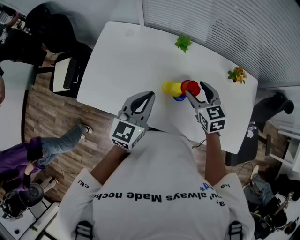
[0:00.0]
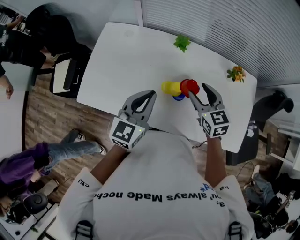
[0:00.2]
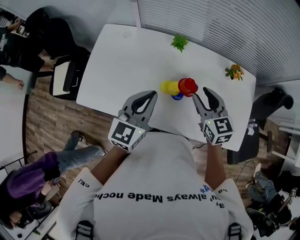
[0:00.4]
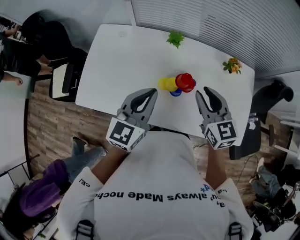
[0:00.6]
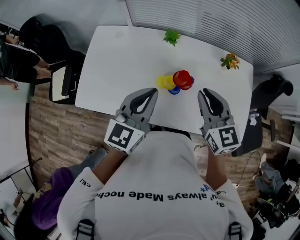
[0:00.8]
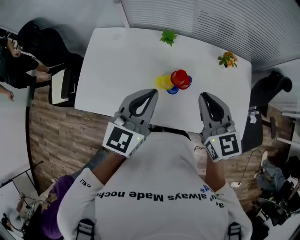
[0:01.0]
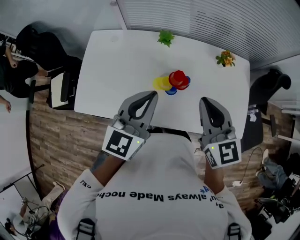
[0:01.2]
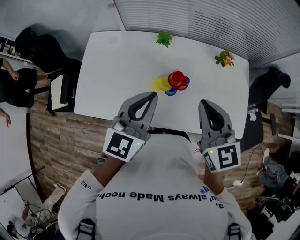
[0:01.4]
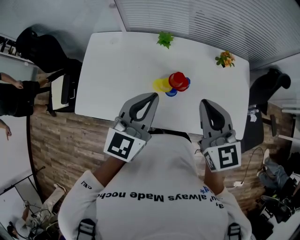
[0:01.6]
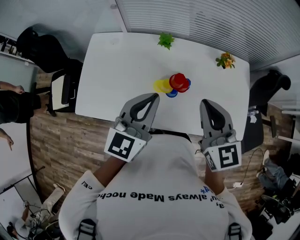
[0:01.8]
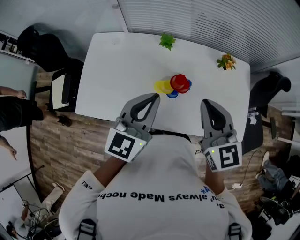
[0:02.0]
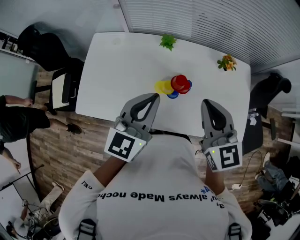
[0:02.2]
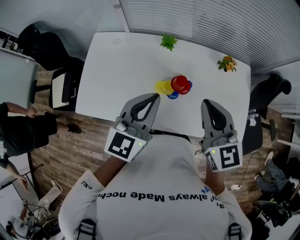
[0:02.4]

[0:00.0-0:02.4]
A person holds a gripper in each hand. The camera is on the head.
0:00.0 to 0:01.2: The right gripper moves upward and backward, approximately 20 cm, turns by some 20 degrees, and closes. The left gripper travels upward and to the right by roughly 10 cm.
0:01.2 to 0:02.4: The grippers stay close to where they were, moving slightly.

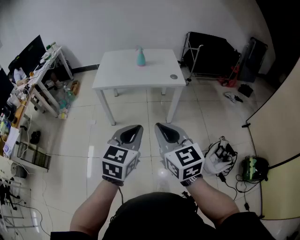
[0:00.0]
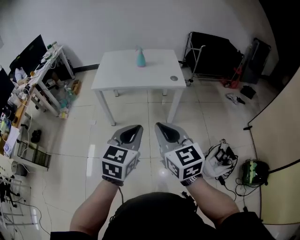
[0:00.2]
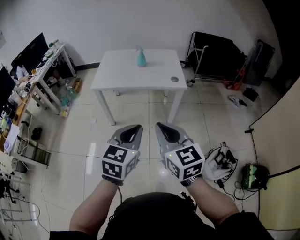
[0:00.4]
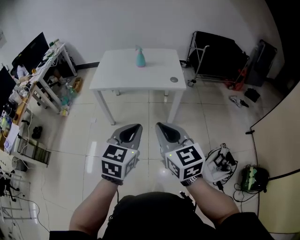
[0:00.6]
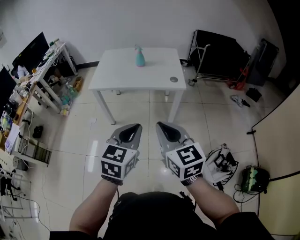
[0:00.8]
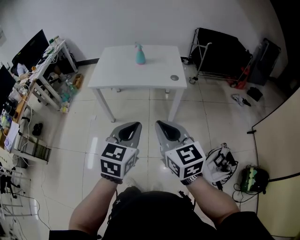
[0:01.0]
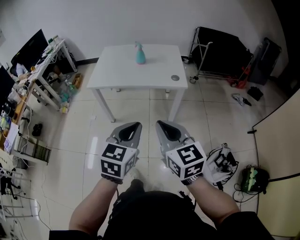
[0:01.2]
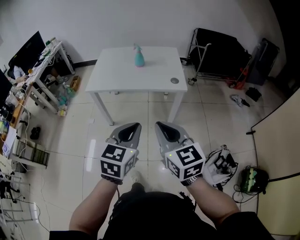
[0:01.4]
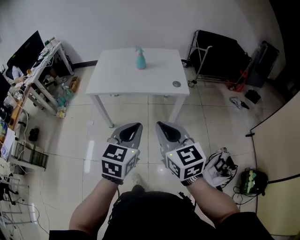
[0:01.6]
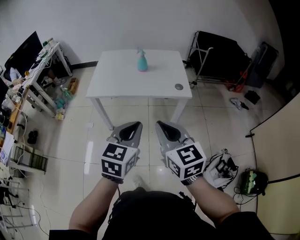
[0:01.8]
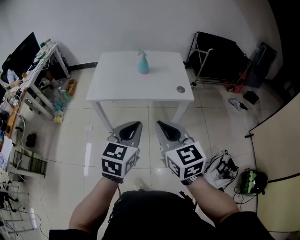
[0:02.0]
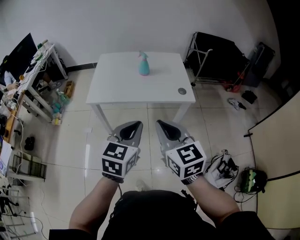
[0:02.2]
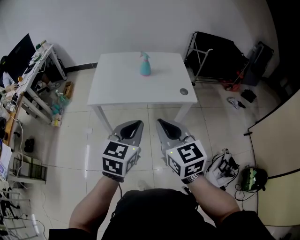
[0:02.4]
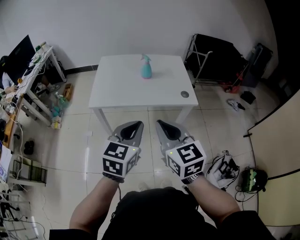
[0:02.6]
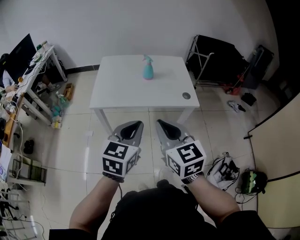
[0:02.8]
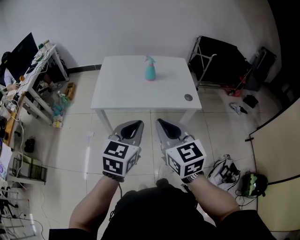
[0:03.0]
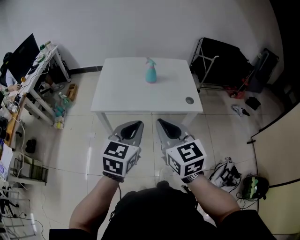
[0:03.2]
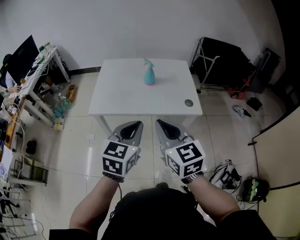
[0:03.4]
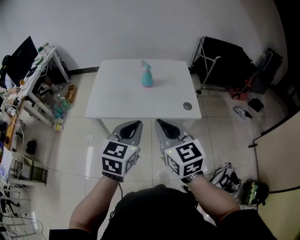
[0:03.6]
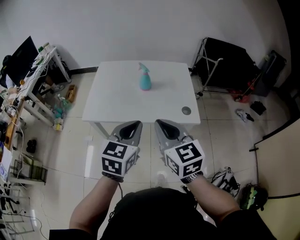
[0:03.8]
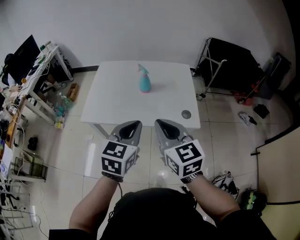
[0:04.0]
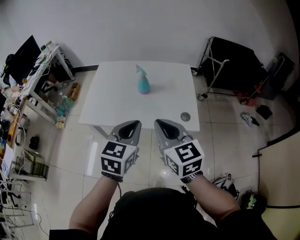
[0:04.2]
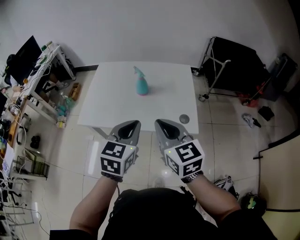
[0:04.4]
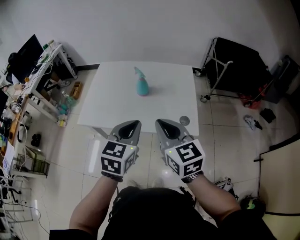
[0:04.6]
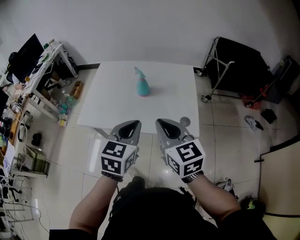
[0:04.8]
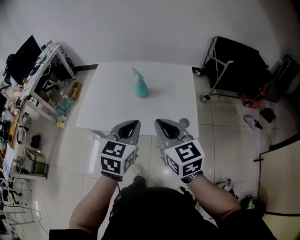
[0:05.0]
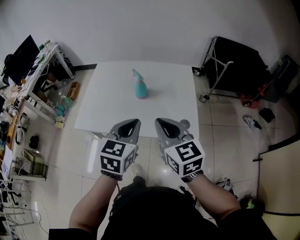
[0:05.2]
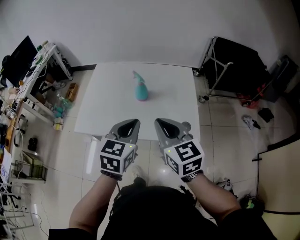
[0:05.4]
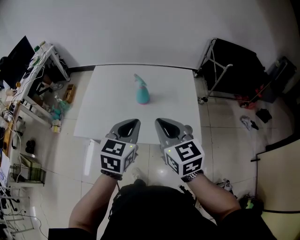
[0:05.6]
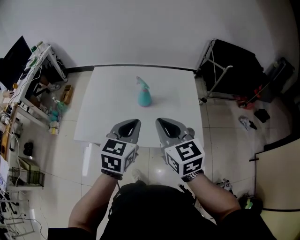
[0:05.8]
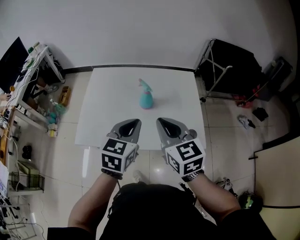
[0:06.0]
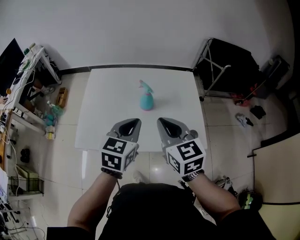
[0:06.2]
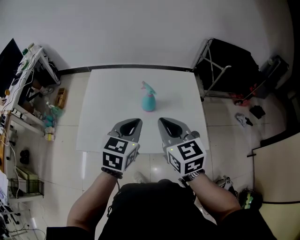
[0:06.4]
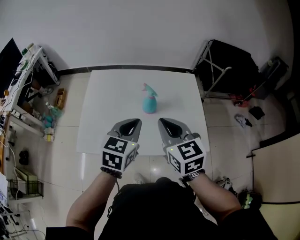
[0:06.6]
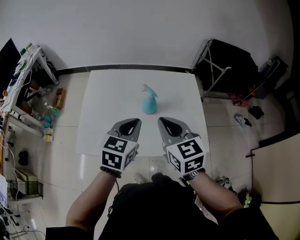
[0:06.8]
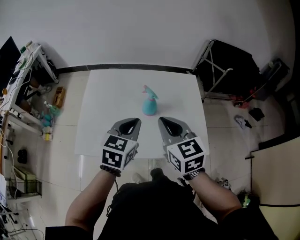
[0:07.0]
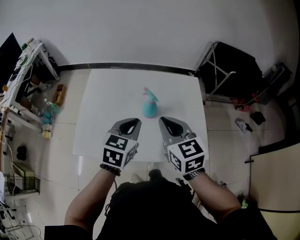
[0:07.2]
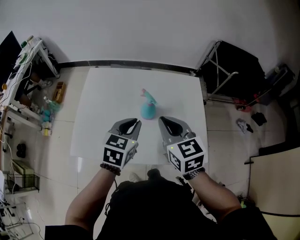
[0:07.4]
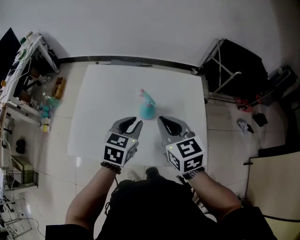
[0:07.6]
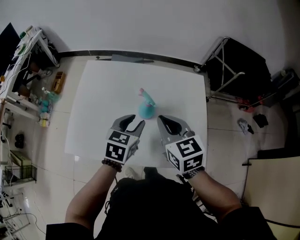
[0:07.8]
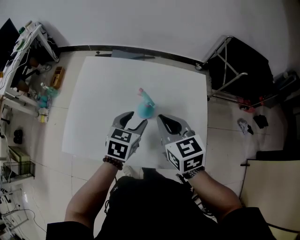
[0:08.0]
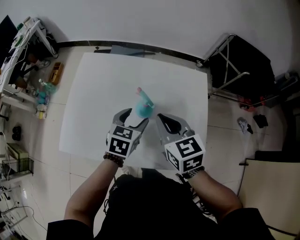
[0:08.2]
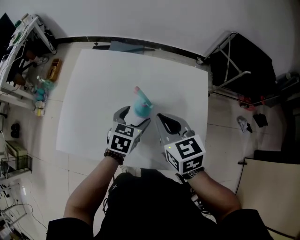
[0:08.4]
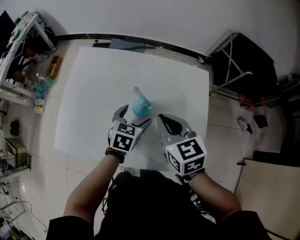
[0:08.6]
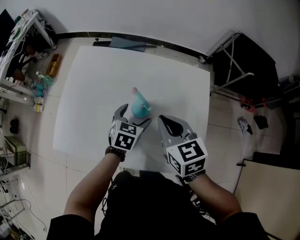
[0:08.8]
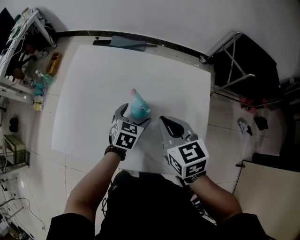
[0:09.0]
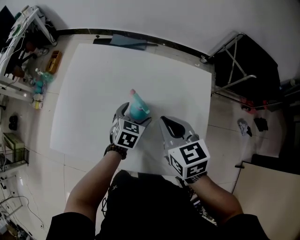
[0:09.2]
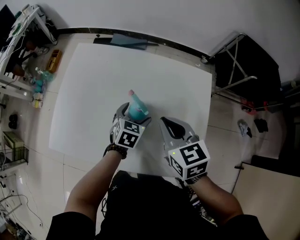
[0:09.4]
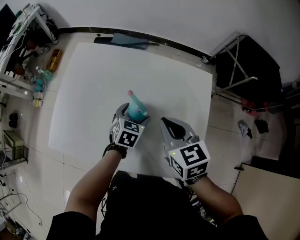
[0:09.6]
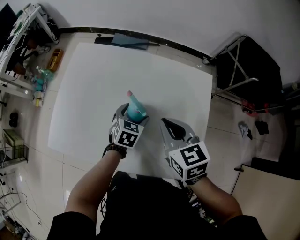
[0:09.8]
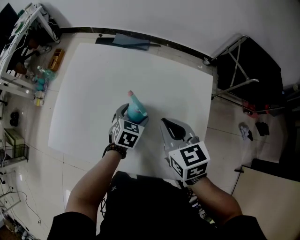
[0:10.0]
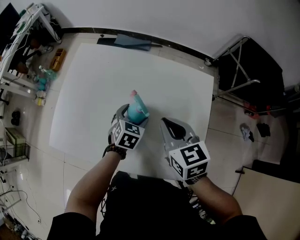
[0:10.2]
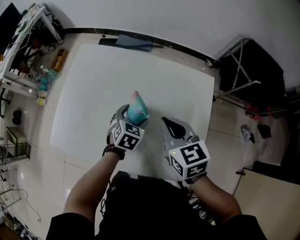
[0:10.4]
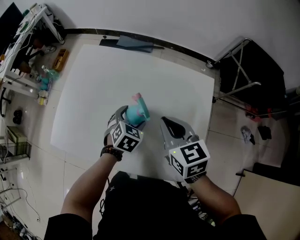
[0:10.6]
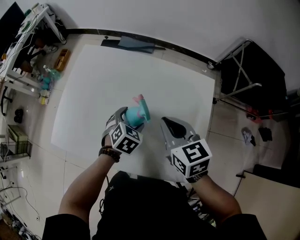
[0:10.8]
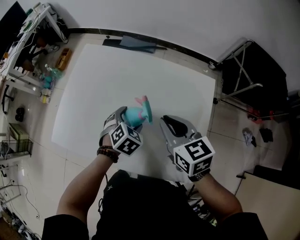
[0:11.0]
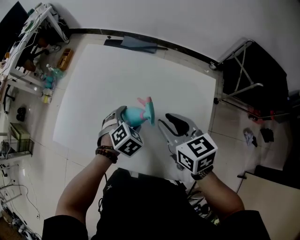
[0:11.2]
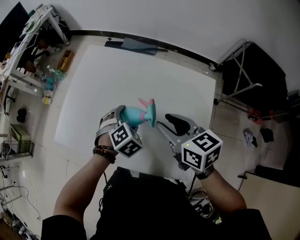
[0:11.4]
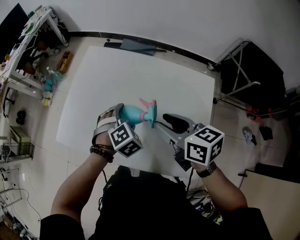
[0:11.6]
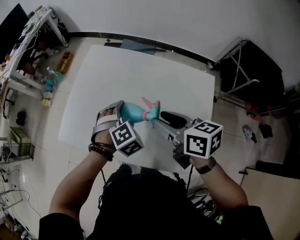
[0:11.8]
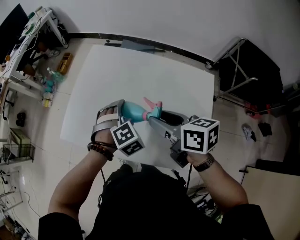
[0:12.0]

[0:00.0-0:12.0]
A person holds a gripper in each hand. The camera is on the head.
0:00.0 to 0:01.6: Both grippers move forward, about 15 cm.
0:01.6 to 0:03.0: The two grippers go about 15 cm forward and to the left.
0:03.0 to 0:04.4: The two grippers go about 20 cm forward and to the right.
0:04.4 to 0:06.0: The left gripper goes approximately 15 cm forward and to the left. The right gripper moves forward, about 10 cm.
0:06.0 to 0:07.6: The left gripper goes some 15 cm forward and downward; the right gripper moves forward, roughly 10 cm.
0:07.6 to 0:09.0: The left gripper is displaced downward and forward by about 15 cm, and opens up, while the right gripper moves downward, about 5 cm.
0:09.0 to 0:10.4: The grippers make only small movements.
0:10.4 to 0:12.0: The right gripper shifts by some 10 cm, swivels about 30 degrees, and opens its fingers. Meanwhile the left gripper moves roughly 10 cm, and swivels approximately 40 degrees.

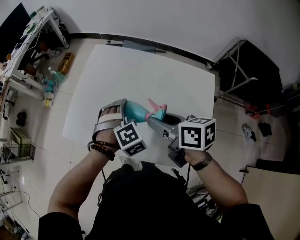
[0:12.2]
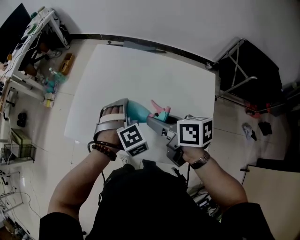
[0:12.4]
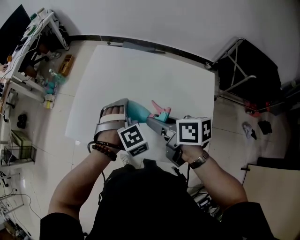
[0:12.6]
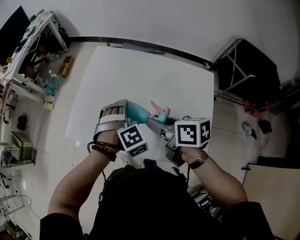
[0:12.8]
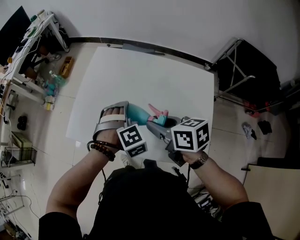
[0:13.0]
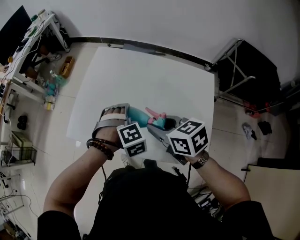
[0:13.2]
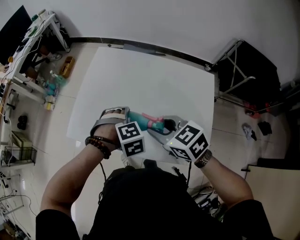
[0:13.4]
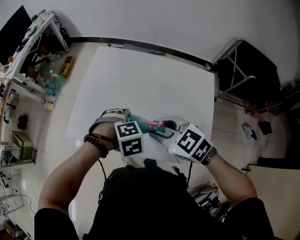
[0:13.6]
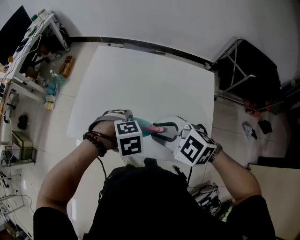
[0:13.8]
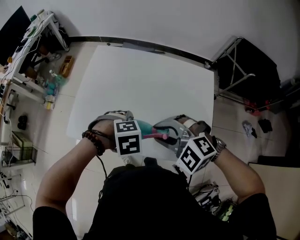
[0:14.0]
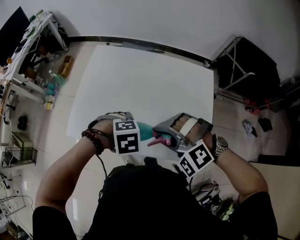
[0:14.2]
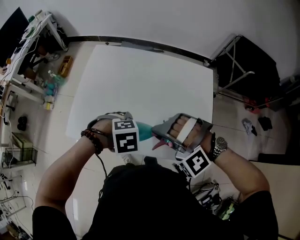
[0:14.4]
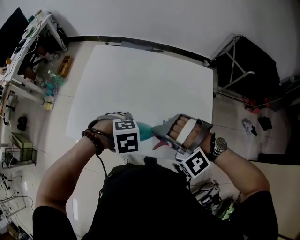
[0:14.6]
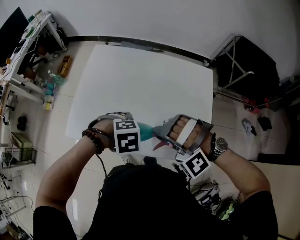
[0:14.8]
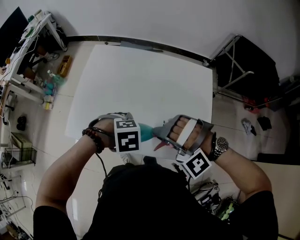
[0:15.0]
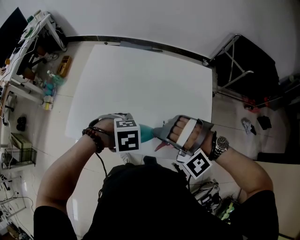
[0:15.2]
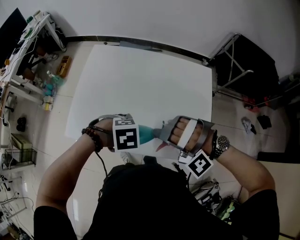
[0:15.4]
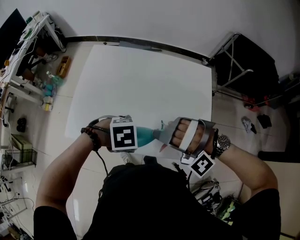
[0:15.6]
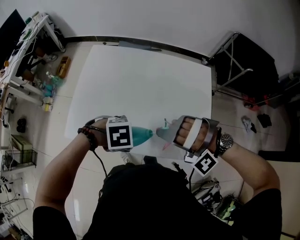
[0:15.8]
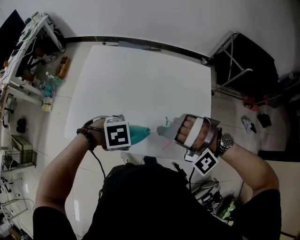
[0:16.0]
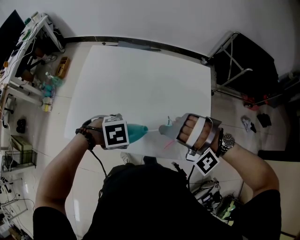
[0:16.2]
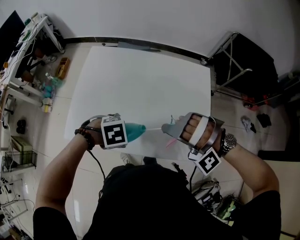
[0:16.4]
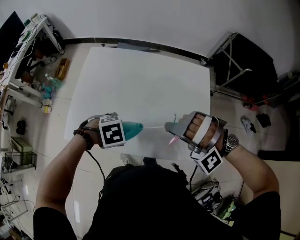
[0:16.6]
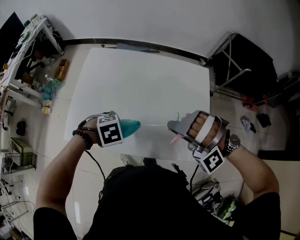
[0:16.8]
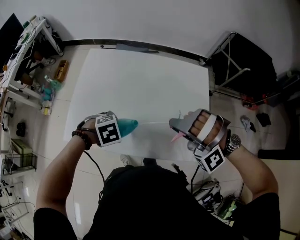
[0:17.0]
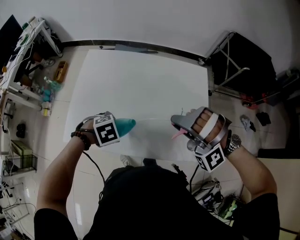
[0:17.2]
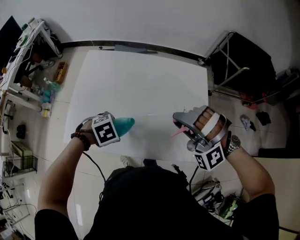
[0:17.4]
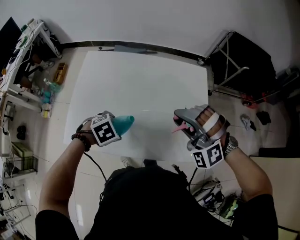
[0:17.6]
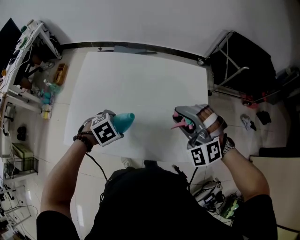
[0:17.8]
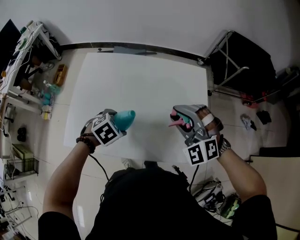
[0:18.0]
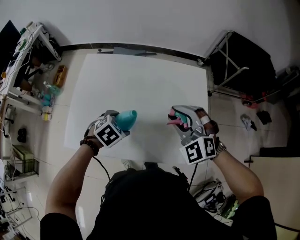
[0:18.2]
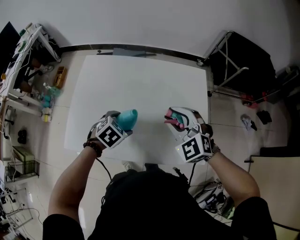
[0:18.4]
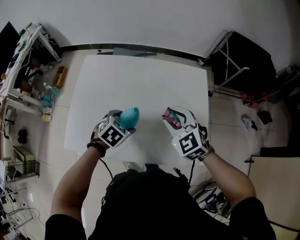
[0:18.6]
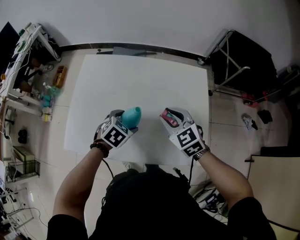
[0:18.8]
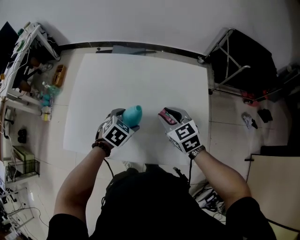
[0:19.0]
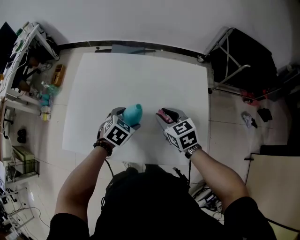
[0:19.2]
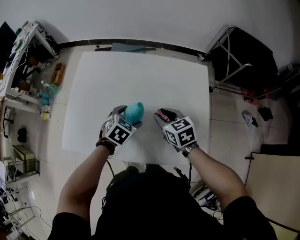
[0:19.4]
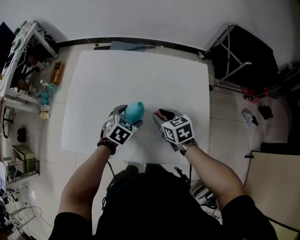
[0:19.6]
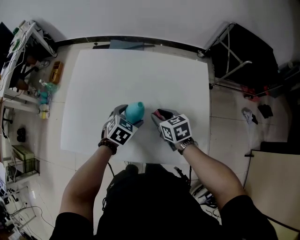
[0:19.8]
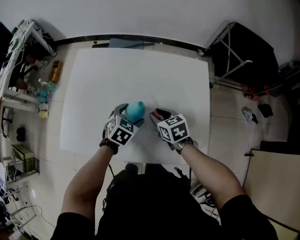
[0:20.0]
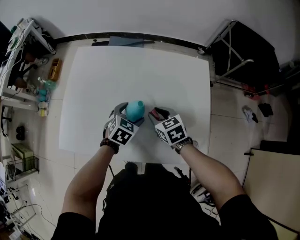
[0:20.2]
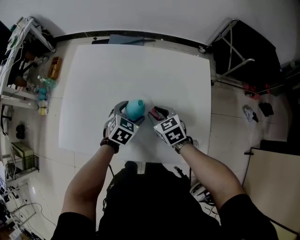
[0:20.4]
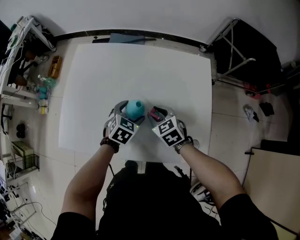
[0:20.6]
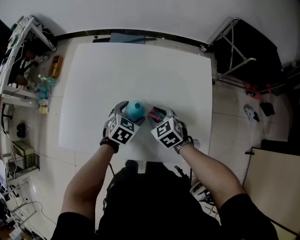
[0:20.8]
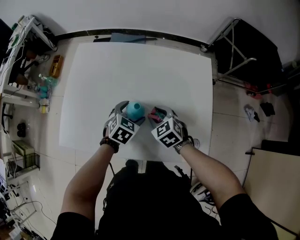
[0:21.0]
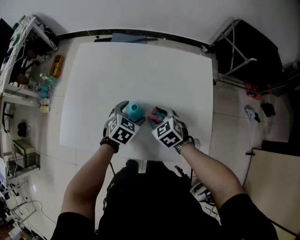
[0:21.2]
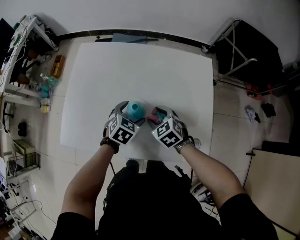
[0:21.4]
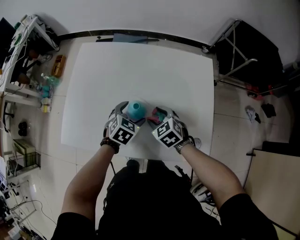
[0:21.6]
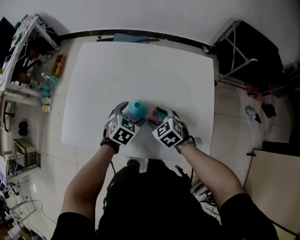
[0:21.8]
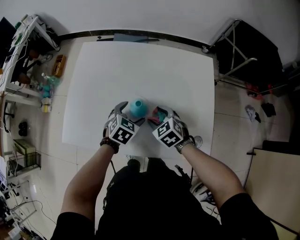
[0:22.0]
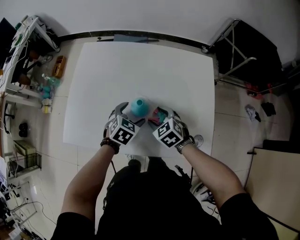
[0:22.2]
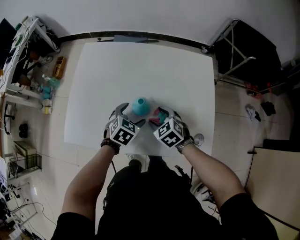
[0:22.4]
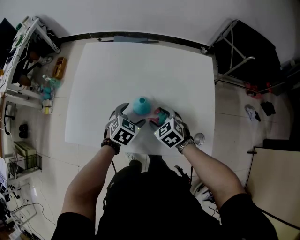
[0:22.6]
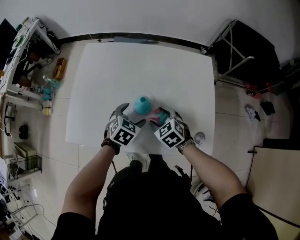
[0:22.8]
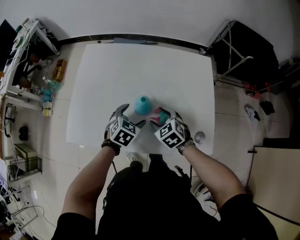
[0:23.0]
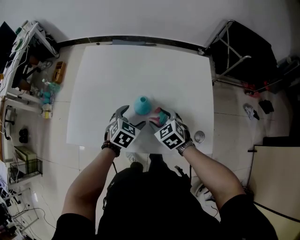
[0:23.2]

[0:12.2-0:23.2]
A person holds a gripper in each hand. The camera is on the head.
0:12.2 to 0:13.8: The right gripper moves some 10 cm, and rolls counterclockwise, seen from behind, by about 70 degrees, while the left gripper changes place by some 10 cm, and swivels roughly 30 degrees.
0:13.8 to 0:15.4: The right gripper rolls counterclockwise, seen from behind, by roughly 70 degrees.
0:15.4 to 0:17.0: The right gripper shifts by approximately 10 cm. The left gripper moves roughly 10 cm.
0:17.0 to 0:18.4: The right gripper shifts by about 10 cm, and rolls clockwise, seen from behind, by about 60 degrees; the left gripper moves some 10 cm, and rotates some 30 degrees.
0:18.4 to 0:20.0: The left gripper travels to the right by approximately 5 cm. The right gripper moves downward, about 15 cm, and rotates around the line of its fingers by approximately 50 degrees, clockwise from behind.
0:20.0 to 0:21.6: The right gripper swivels about 30 degrees, and opens its fingers.
0:21.6 to 0:23.2: The grippers move only a little.
